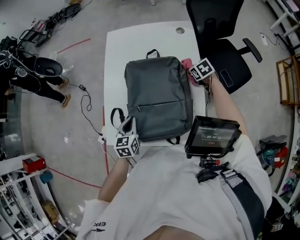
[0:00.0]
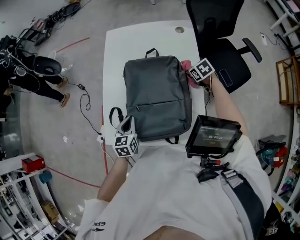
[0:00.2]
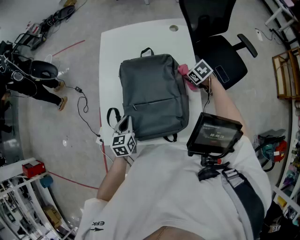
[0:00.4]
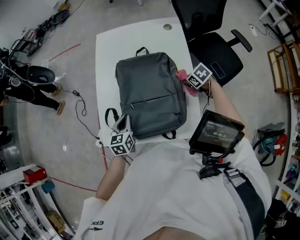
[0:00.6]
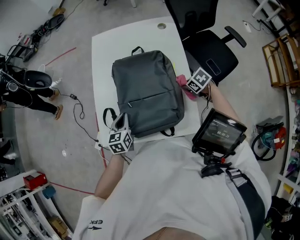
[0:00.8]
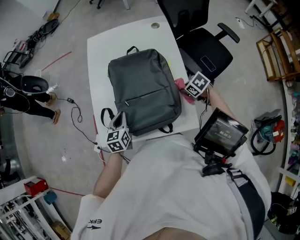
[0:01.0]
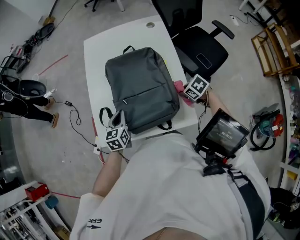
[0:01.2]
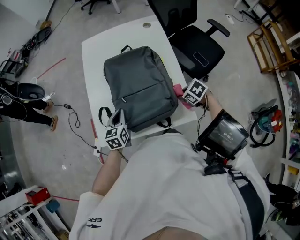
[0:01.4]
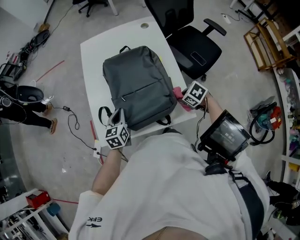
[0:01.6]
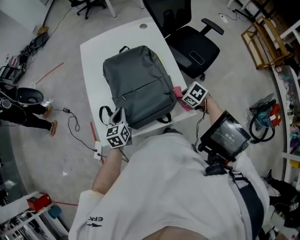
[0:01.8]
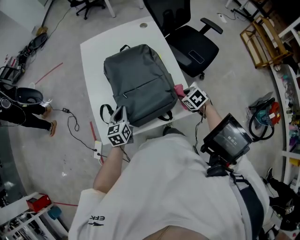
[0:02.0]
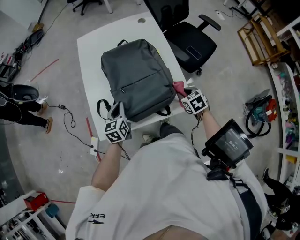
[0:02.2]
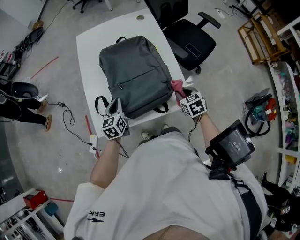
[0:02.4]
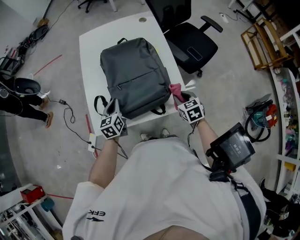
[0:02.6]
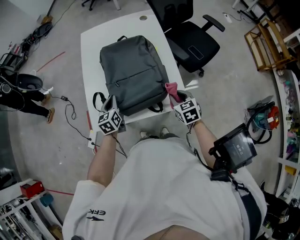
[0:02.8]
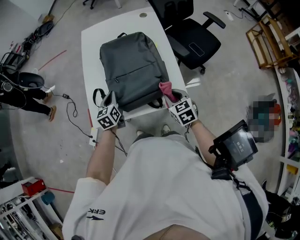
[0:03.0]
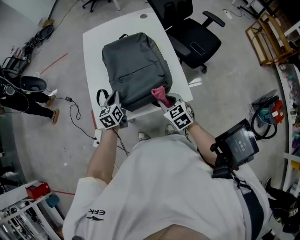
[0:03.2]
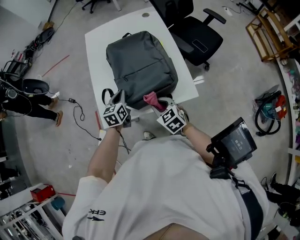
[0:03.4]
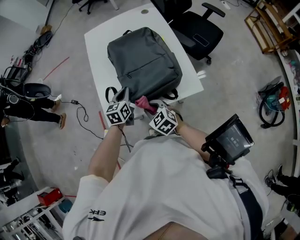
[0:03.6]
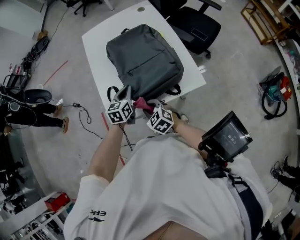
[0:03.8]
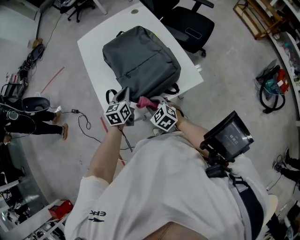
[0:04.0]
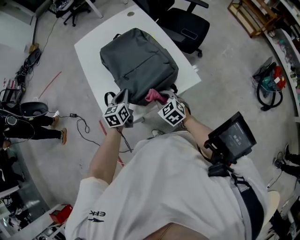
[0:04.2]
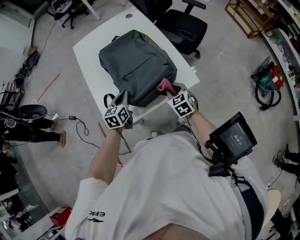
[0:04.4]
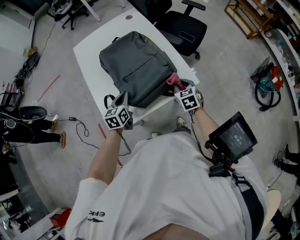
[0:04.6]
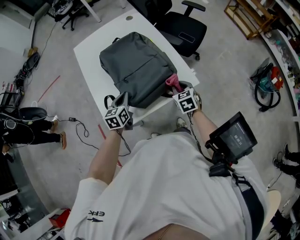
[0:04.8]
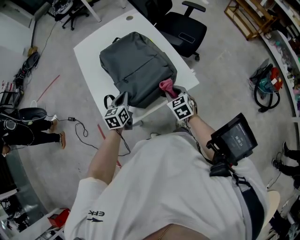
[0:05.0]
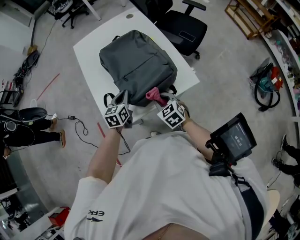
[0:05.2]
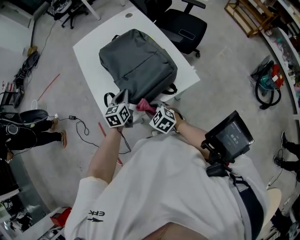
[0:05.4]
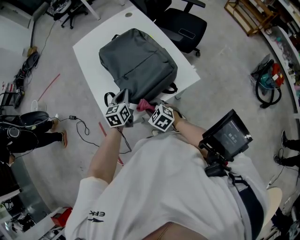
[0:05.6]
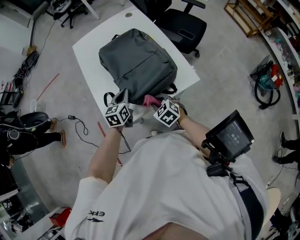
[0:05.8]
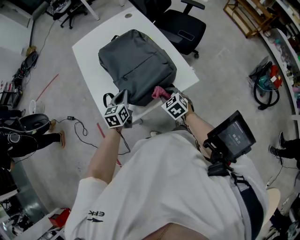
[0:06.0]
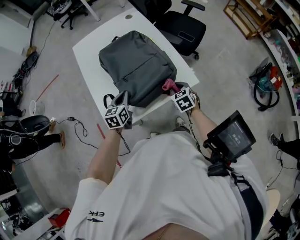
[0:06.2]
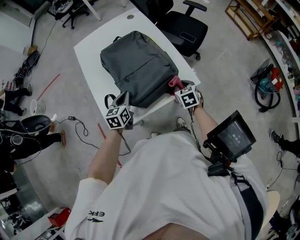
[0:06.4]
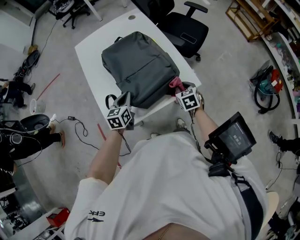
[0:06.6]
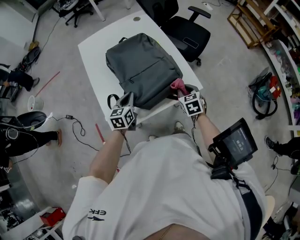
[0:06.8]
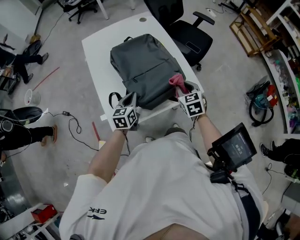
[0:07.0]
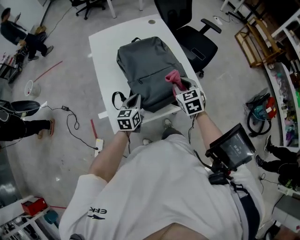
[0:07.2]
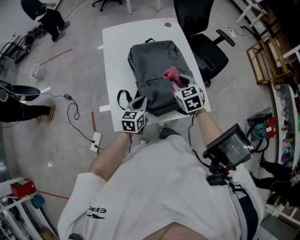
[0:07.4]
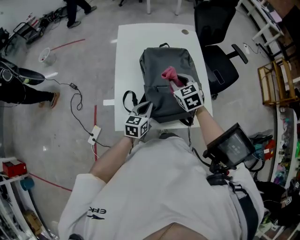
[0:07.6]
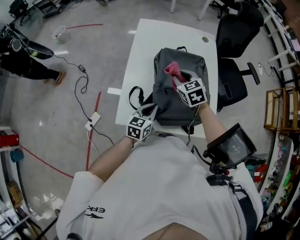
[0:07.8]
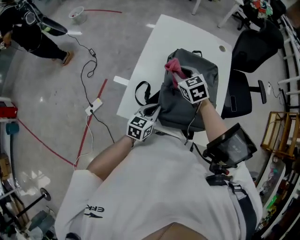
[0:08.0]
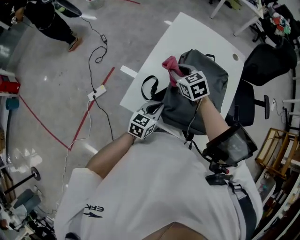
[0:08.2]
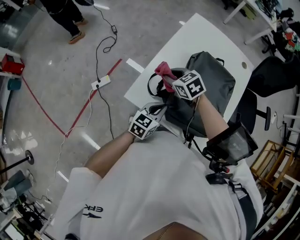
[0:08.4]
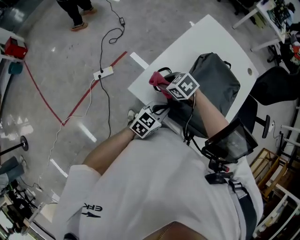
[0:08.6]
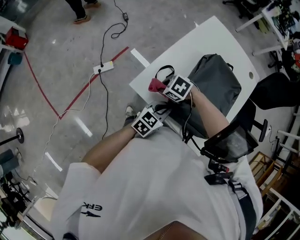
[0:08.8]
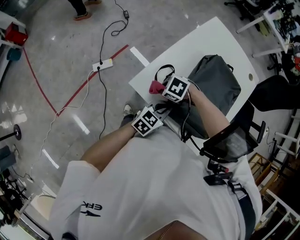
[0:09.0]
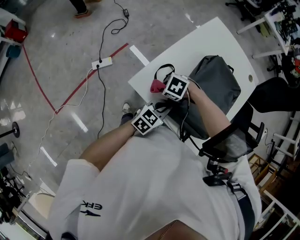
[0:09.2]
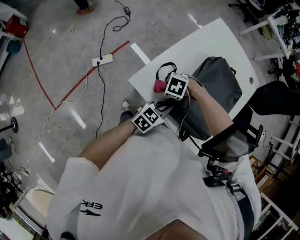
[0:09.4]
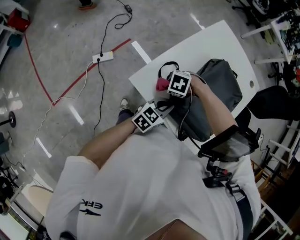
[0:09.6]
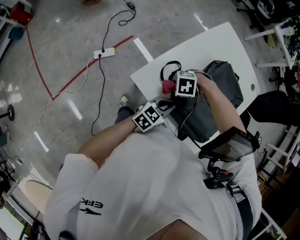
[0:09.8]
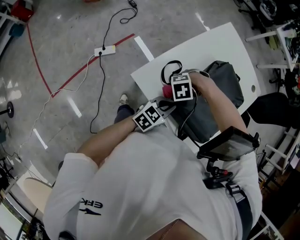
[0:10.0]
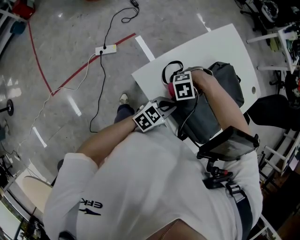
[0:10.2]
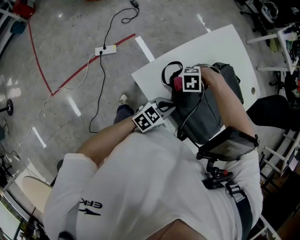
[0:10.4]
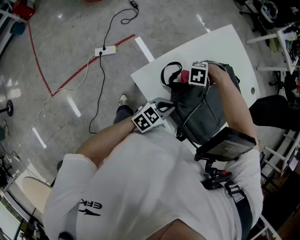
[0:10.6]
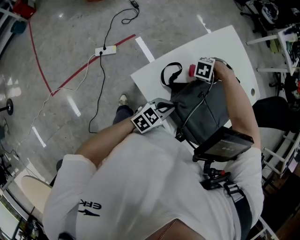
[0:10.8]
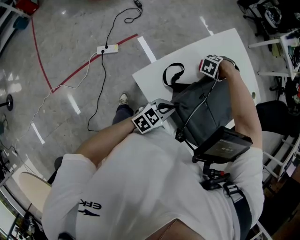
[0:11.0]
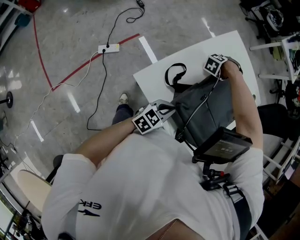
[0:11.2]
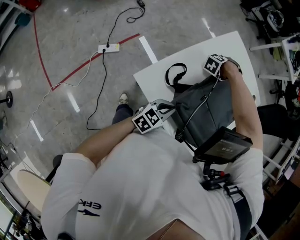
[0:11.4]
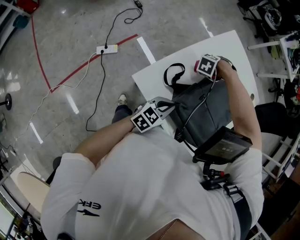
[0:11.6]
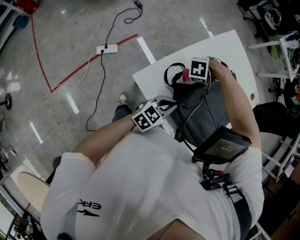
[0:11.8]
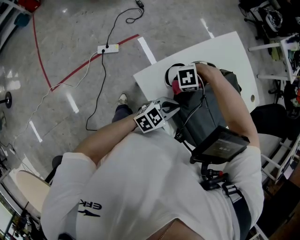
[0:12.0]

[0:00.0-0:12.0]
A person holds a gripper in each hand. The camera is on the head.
0:00.0 to 0:01.6: The right gripper travels backward and to the left by roughly 30 cm.
0:01.6 to 0:03.0: The right gripper moves some 10 cm, and turns by roughly 40 degrees.
0:03.0 to 0:04.4: The left gripper rotates about 30 degrees. The right gripper goes to the left and returns, about 25 cm each way.
0:04.4 to 0:06.0: The right gripper swings left and right, approximately 20 cm each way, with 2 reversals.
0:06.0 to 0:07.6: The right gripper goes about 25 cm forward, upward and to the left, and swivels about 20 degrees.
0:07.6 to 0:09.0: The right gripper ends up approximately 25 cm from where it was, and angles its fingers downward, by roughly 30 degrees.
0:09.0 to 0:10.4: The right gripper moves some 10 cm, and rotates about 50 degrees.

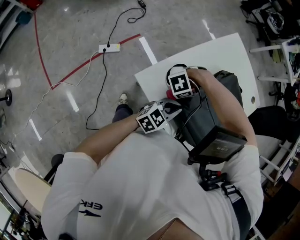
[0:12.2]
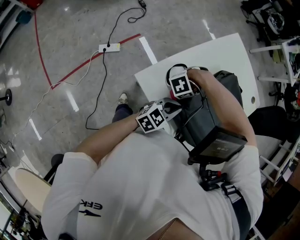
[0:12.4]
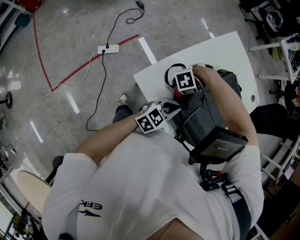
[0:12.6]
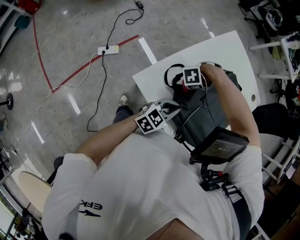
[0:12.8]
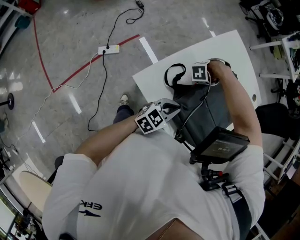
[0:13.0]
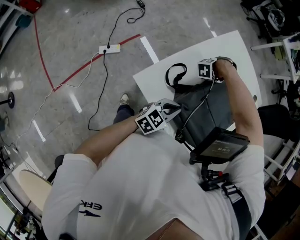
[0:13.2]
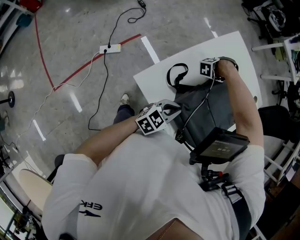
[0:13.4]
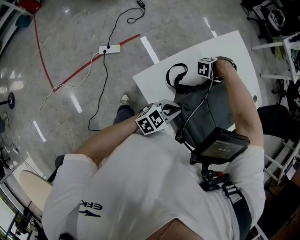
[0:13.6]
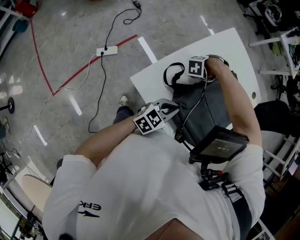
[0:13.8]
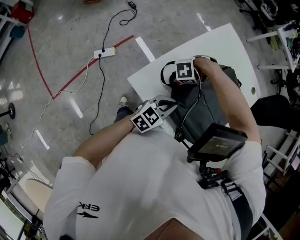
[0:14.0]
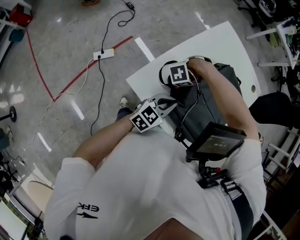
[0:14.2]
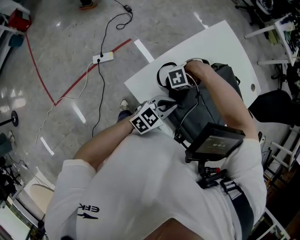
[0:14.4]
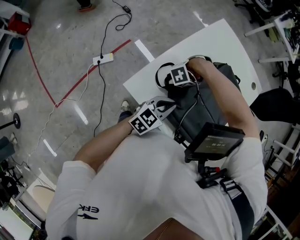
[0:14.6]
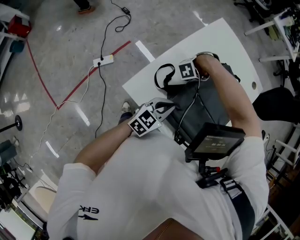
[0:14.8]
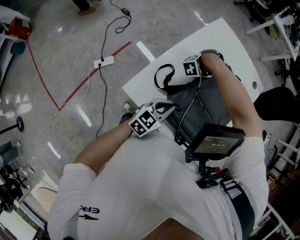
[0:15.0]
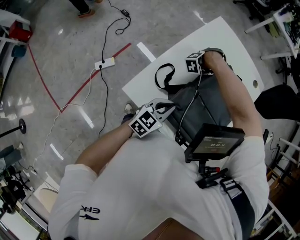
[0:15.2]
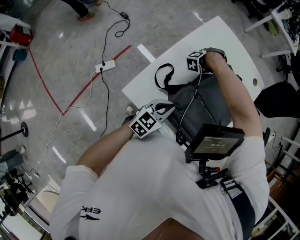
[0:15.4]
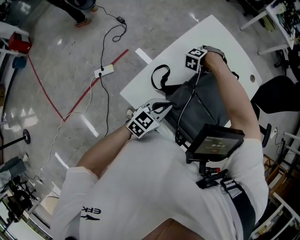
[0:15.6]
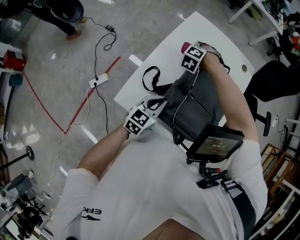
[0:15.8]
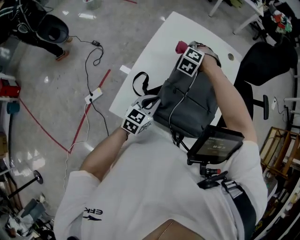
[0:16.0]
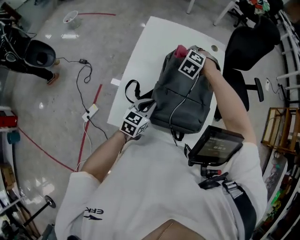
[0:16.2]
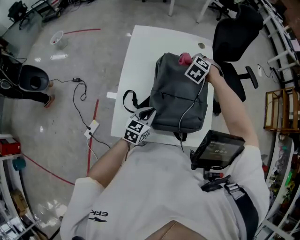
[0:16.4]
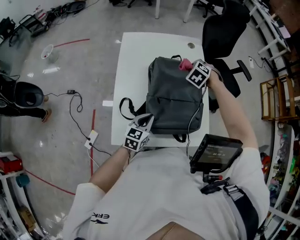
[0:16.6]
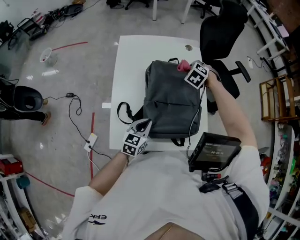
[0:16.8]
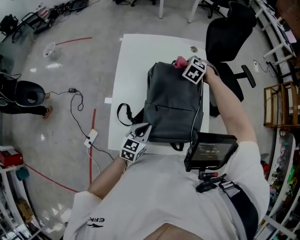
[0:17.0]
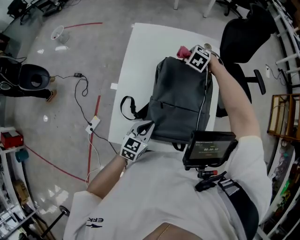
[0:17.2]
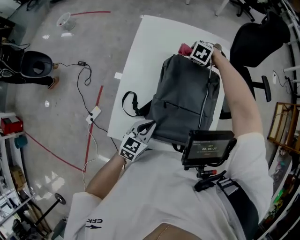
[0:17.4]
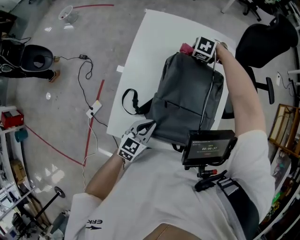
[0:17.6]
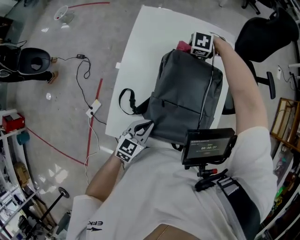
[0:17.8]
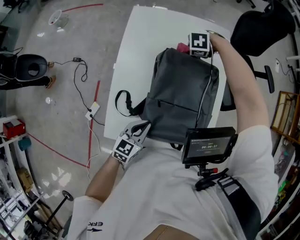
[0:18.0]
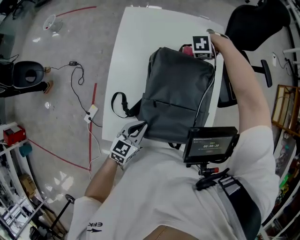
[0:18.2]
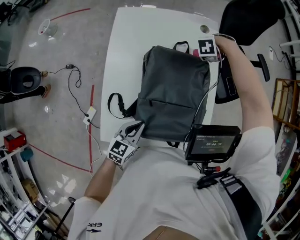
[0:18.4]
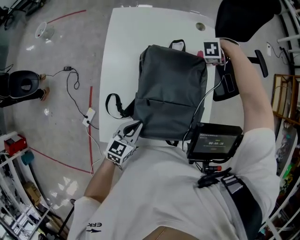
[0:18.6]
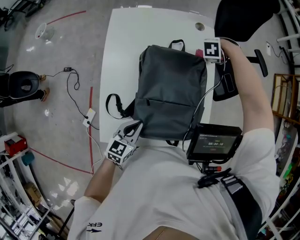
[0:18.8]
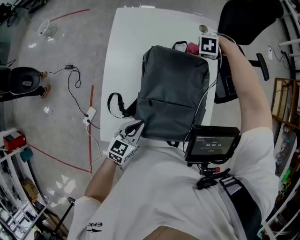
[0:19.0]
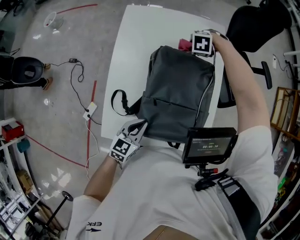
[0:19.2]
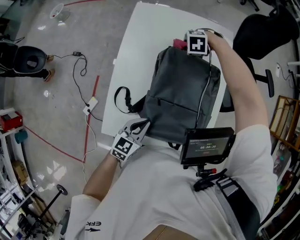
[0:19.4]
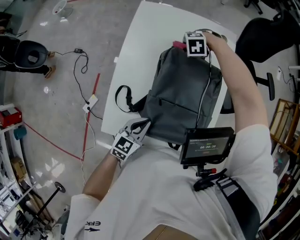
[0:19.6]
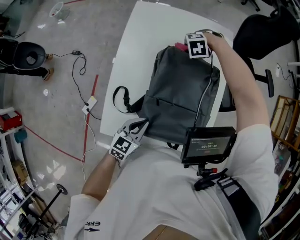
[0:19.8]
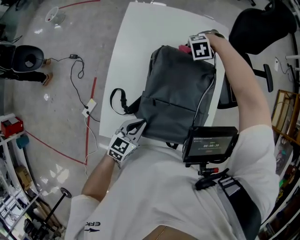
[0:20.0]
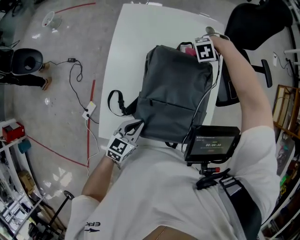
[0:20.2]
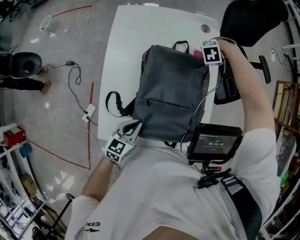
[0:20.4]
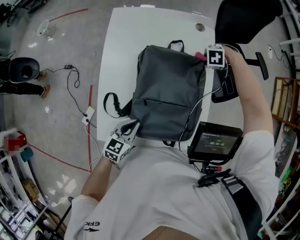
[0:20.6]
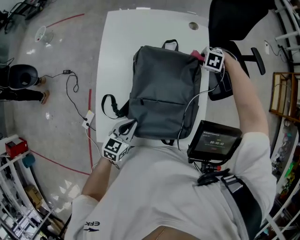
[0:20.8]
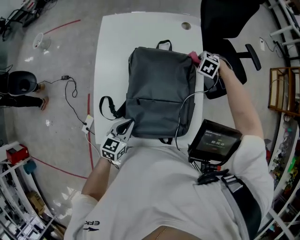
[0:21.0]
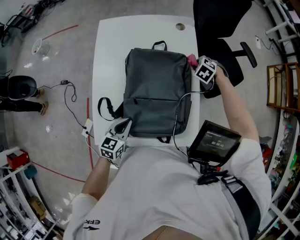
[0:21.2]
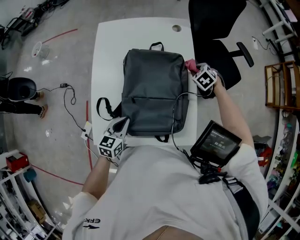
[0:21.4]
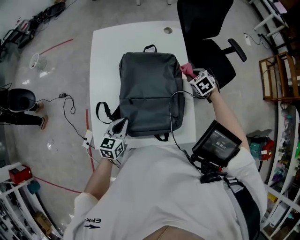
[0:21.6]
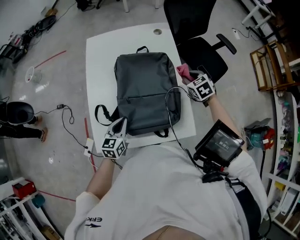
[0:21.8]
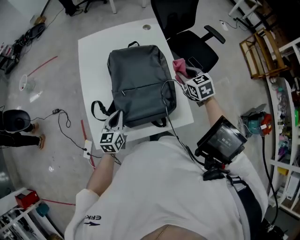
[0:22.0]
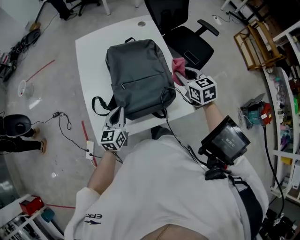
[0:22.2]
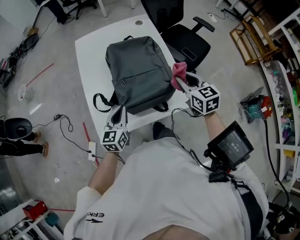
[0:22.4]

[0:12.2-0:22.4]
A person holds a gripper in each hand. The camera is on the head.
0:12.2 to 0:13.6: The right gripper moves roughly 25 cm, and turns by approximately 50 degrees.
0:13.6 to 0:15.2: The right gripper travels backward and back again, roughly 10 cm each way.
0:15.2 to 0:16.6: The right gripper shifts by some 25 cm, and rolls clockwise, seen from behind, by about 80 degrees, while the left gripper rotates approximately 20 degrees.
0:16.6 to 0:18.0: The right gripper changes place by approximately 15 cm, and swivels some 50 degrees.
0:19.4 to 0:21.0: The right gripper ends up roughly 25 cm from where it was, and turns by roughly 40 degrees.
0:21.0 to 0:22.4: The right gripper shifts by some 40 cm, and tilts its fingers some 50 degrees upward, while the left gripper ends up roughly 10 cm from where it was.

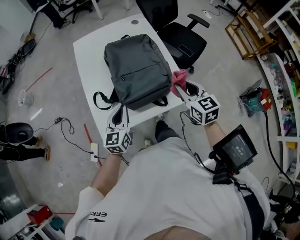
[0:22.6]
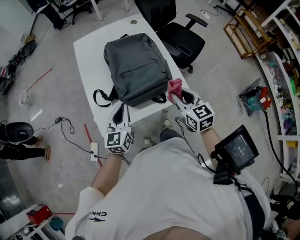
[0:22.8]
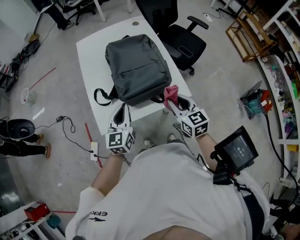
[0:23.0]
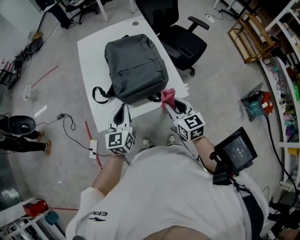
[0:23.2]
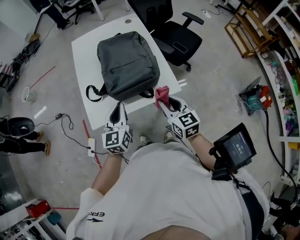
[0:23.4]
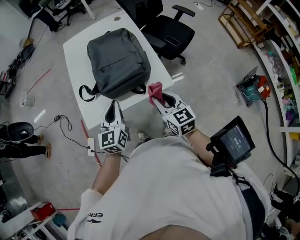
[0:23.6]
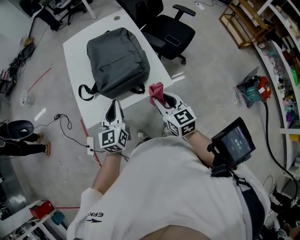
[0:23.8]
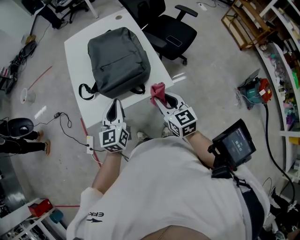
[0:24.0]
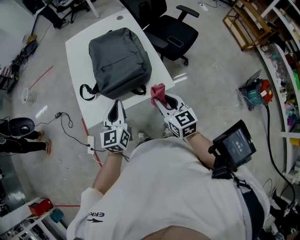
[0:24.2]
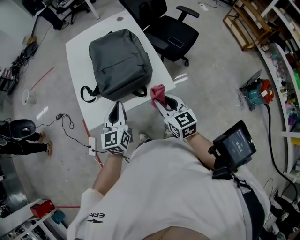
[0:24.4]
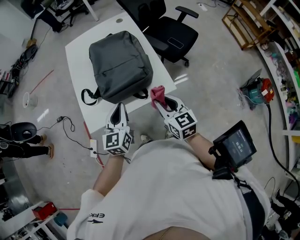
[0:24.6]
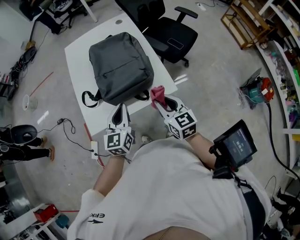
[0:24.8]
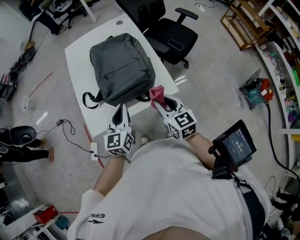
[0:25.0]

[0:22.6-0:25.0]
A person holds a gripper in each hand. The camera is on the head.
0:22.6 to 0:23.8: The left gripper shifts some 10 cm to the right and backward, while the right gripper travels backward by roughly 15 cm.
0:23.8 to 0:25.0: The grippers move only a little.
